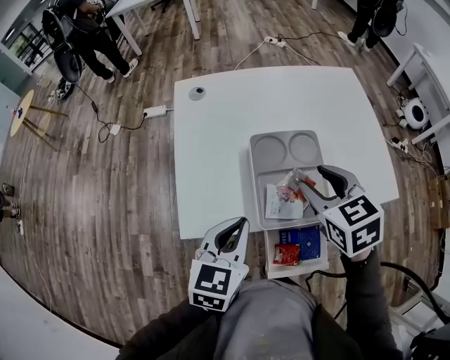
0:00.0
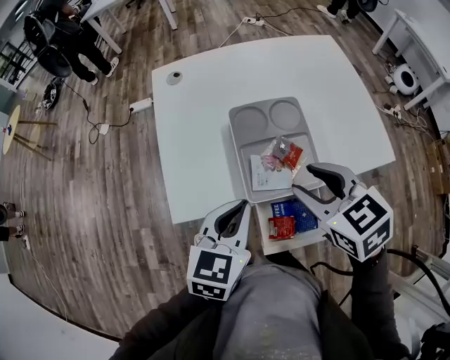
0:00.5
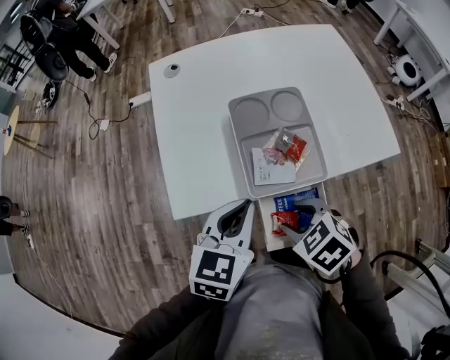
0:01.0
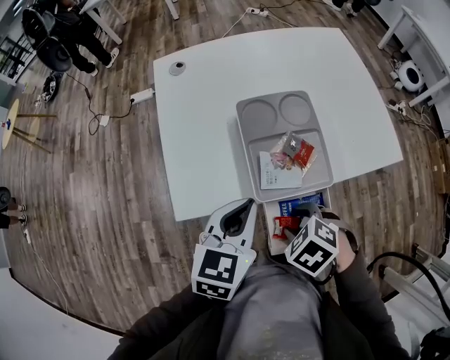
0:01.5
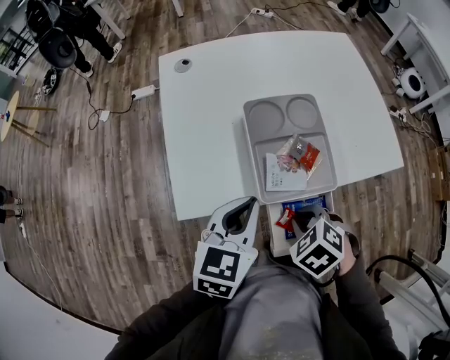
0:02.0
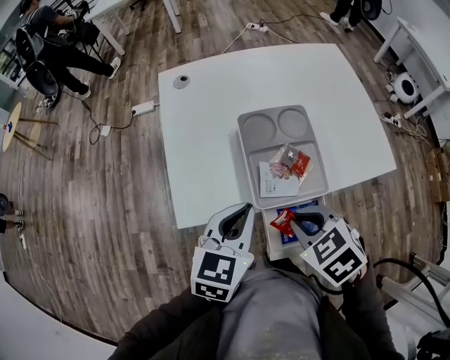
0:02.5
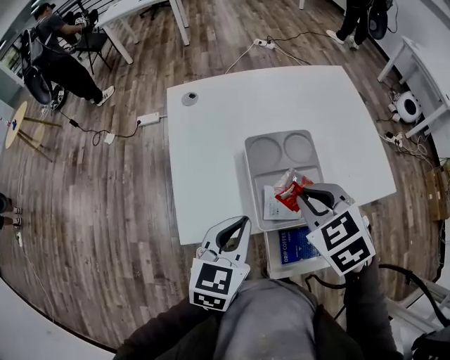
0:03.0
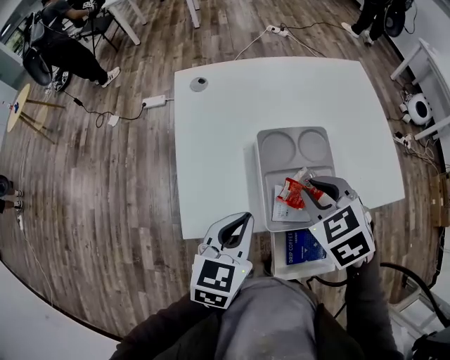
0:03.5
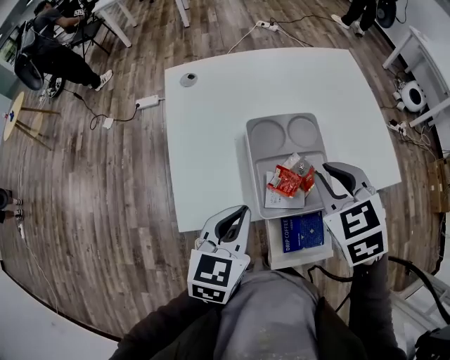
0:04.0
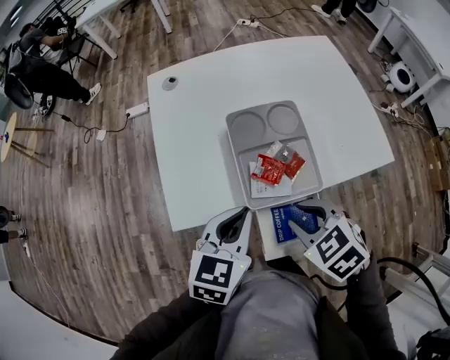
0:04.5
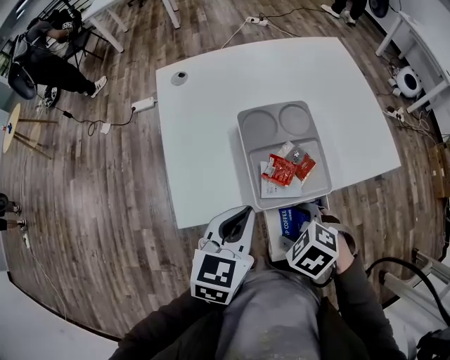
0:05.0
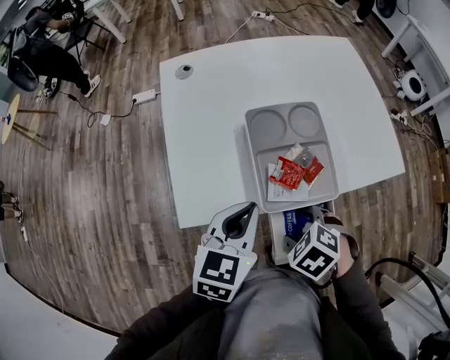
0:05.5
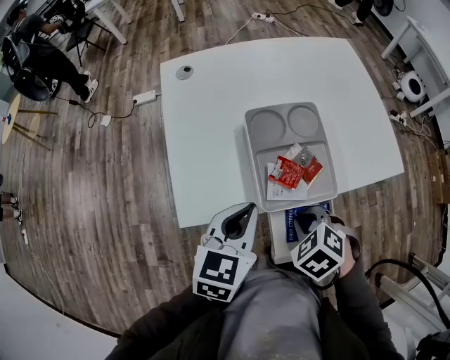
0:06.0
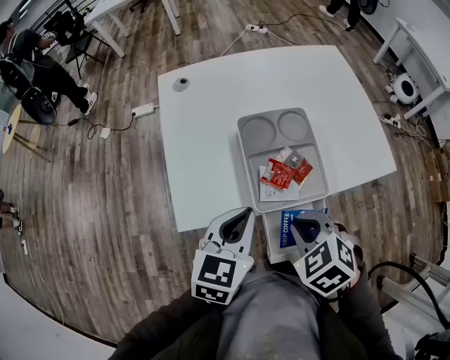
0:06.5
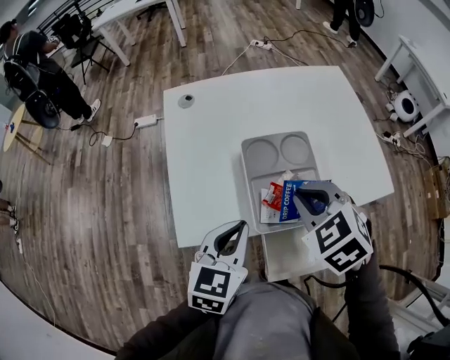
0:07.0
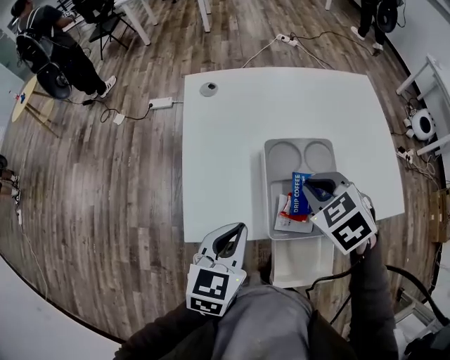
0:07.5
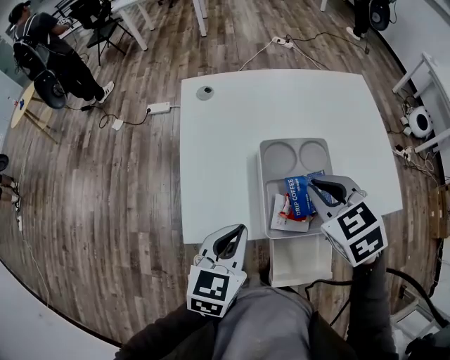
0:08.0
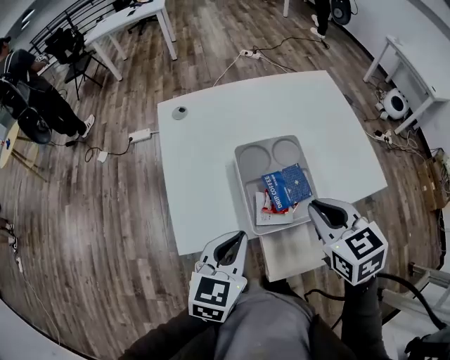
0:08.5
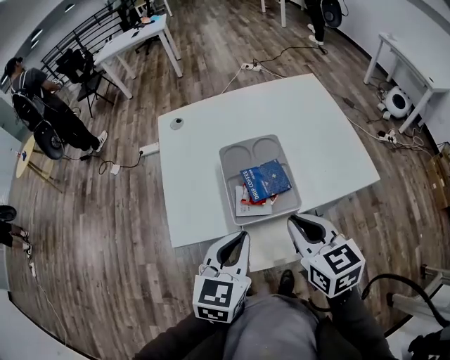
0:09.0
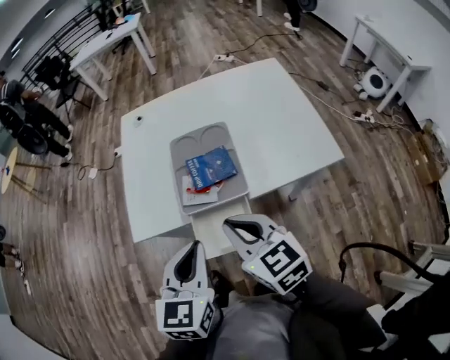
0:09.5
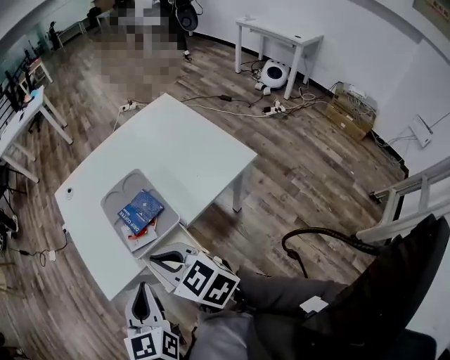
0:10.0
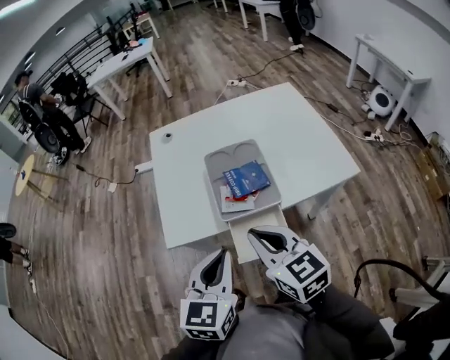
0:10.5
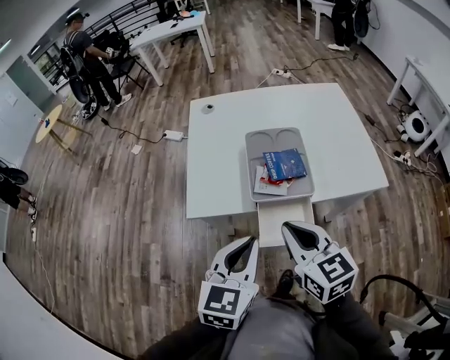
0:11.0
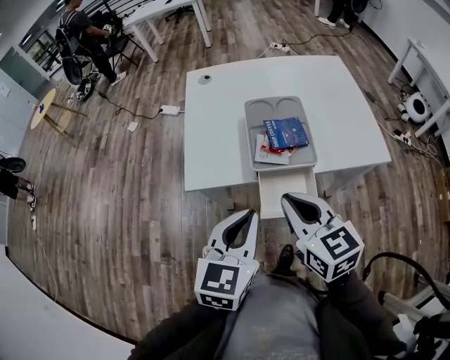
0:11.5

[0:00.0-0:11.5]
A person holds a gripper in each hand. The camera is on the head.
0:00.0 to 0:02.0: The right gripper moves approximately 20 cm, tilts its fingers roughly 30 degrees downward, and closes up.
0:02.0 to 0:04.0: The right gripper is displaced upward by some 15 cm, and swivels about 30 degrees.
0:04.0 to 0:06.0: The right gripper is displaced downward by roughly 15 cm, swivels about 30 degrees, and opens and closes again.
0:06.0 to 0:07.5: The right gripper travels forward and upward by about 20 cm.
0:07.5 to 0:09.5: The left gripper heads backward, to the right and upward, covering roughly 20 cm. Meanwhile the right gripper heads backward, covering roughly 20 cm, and angles its fingers upward, by about 40 degrees.
0:09.5 to 0:11.5: The right gripper shifts by about 5 cm. The left gripper shifts by roughly 5 cm.

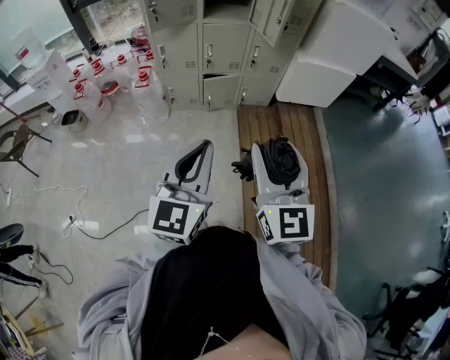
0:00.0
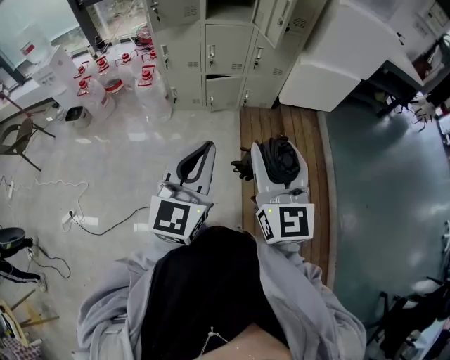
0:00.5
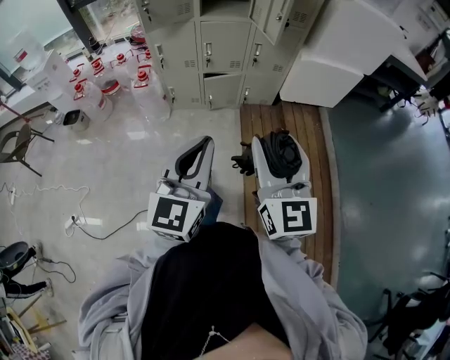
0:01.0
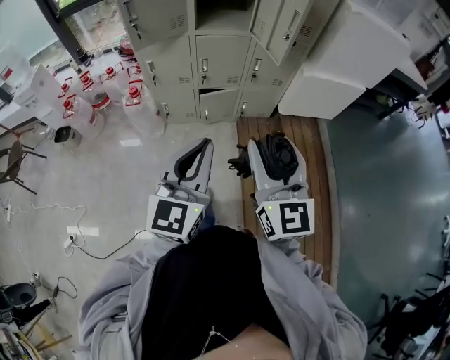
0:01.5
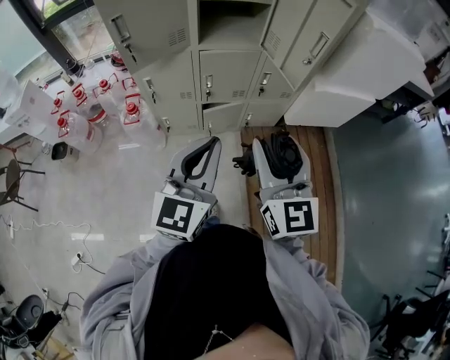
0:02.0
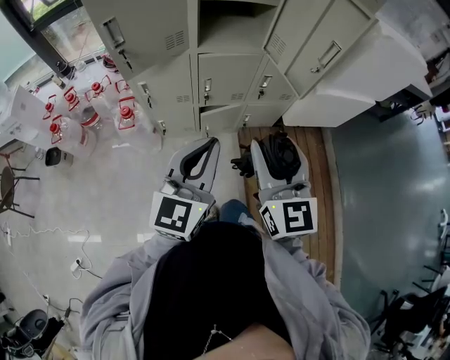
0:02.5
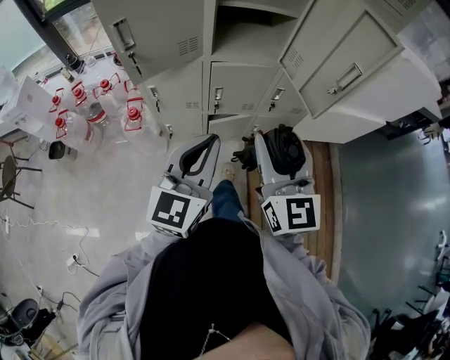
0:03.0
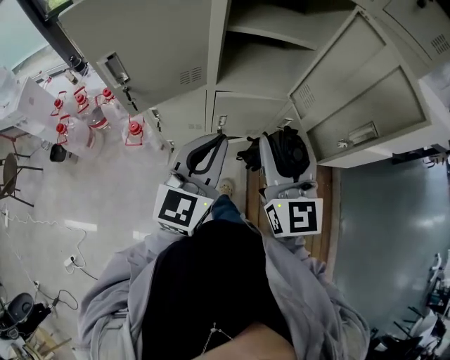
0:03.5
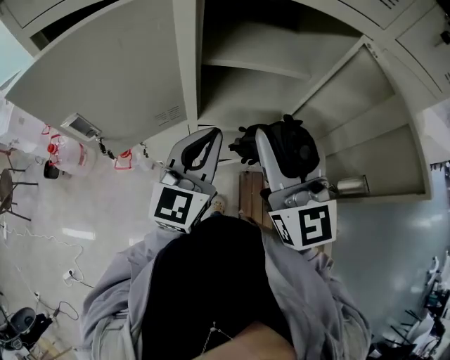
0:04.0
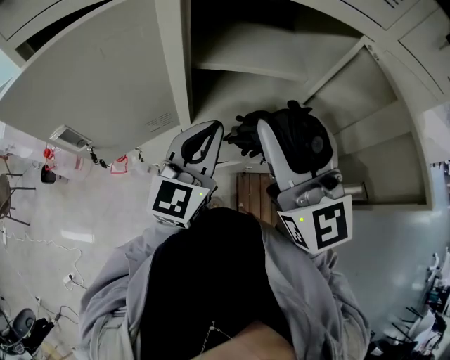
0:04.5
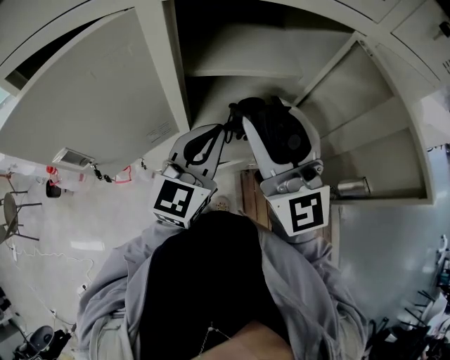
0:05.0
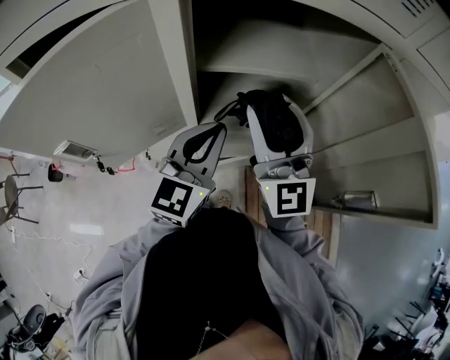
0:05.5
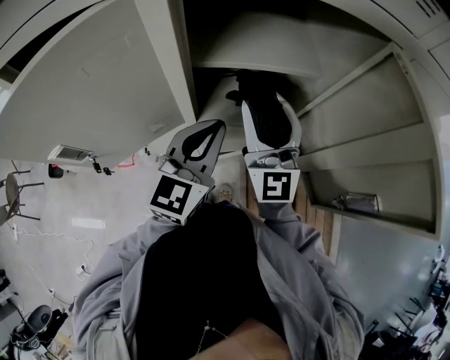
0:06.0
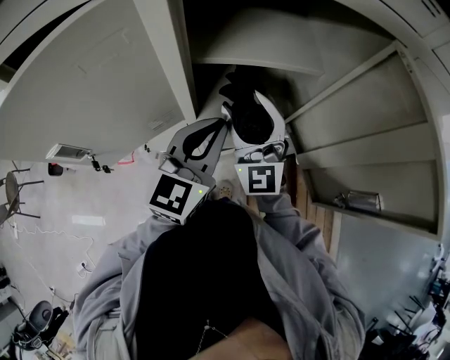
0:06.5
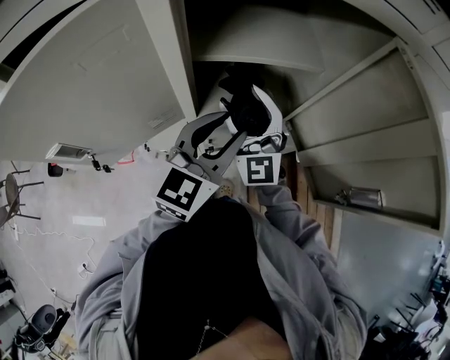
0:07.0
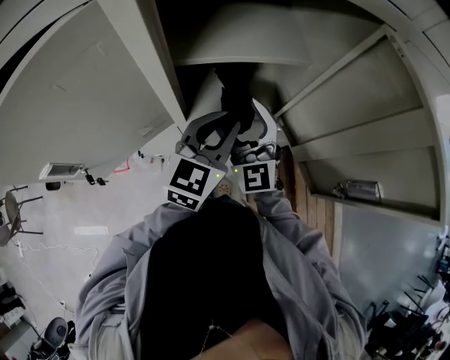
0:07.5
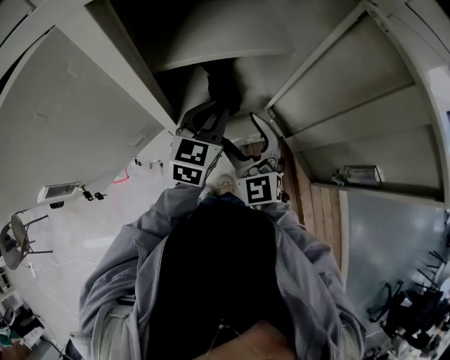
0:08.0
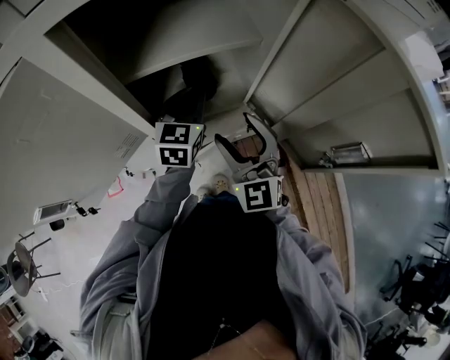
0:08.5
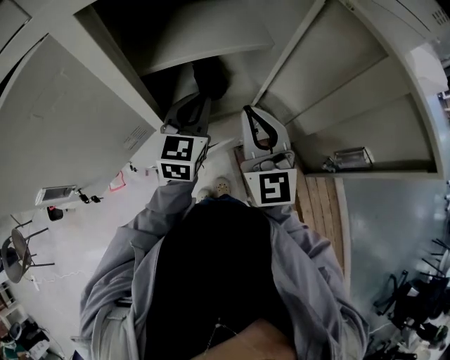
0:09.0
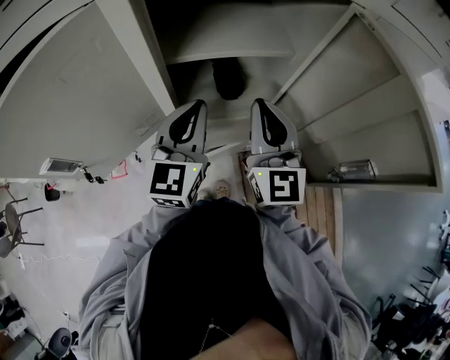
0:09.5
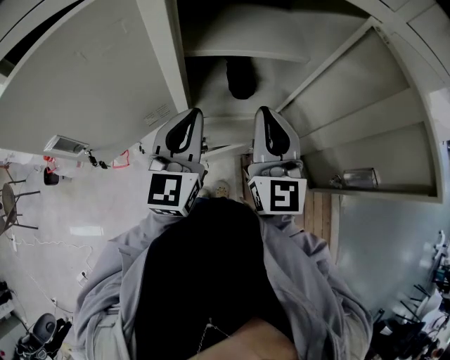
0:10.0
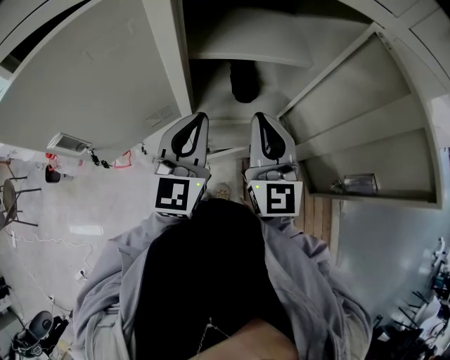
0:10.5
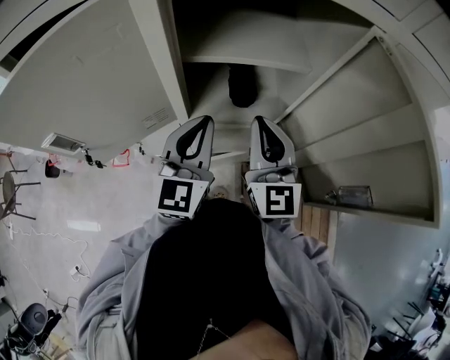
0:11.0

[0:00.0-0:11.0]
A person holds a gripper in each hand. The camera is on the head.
0:00.0 to 0:02.0: Both grippers move forward, roughly 35 cm.
0:02.0 to 0:03.5: The grippers both shift forward by roughly 25 cm.
0:03.5 to 0:05.5: Both grippers travel together forward, roughly 20 cm. The right gripper turns by approximately 20 degrees.
0:05.5 to 0:07.5: The right gripper goes approximately 15 cm downward, swivels approximately 30 degrees, and opens, while the left gripper is displaced downward by approximately 5 cm, and opens and closes again.
0:07.5 to 0:09.0: The right gripper goes approximately 10 cm to the right and upward, and closes up. The left gripper is displaced forward by approximately 5 cm.
0:09.0 to 0:11.0: The left gripper goes approximately 10 cm backward and upward.

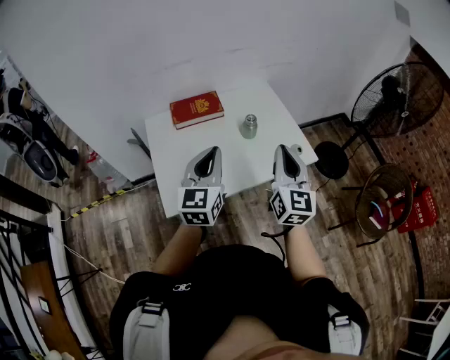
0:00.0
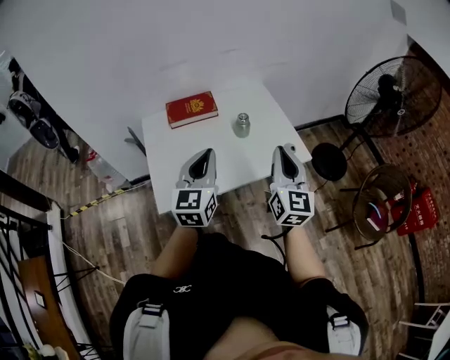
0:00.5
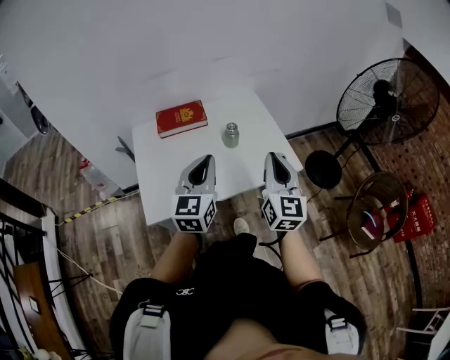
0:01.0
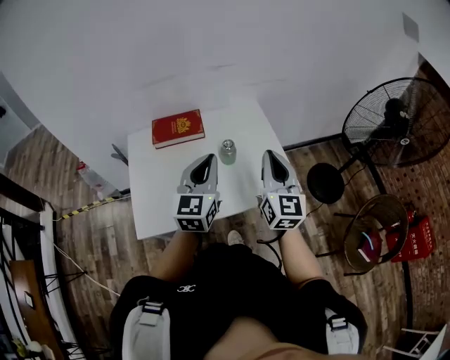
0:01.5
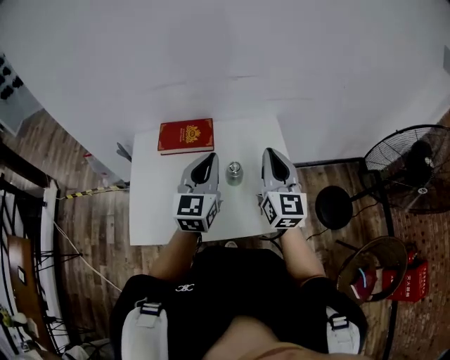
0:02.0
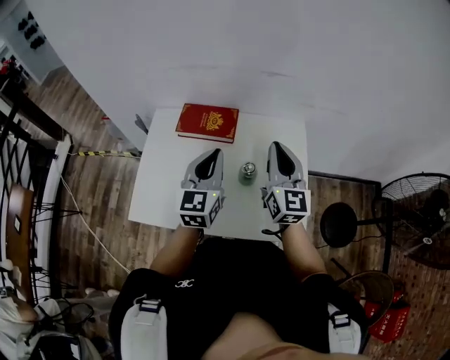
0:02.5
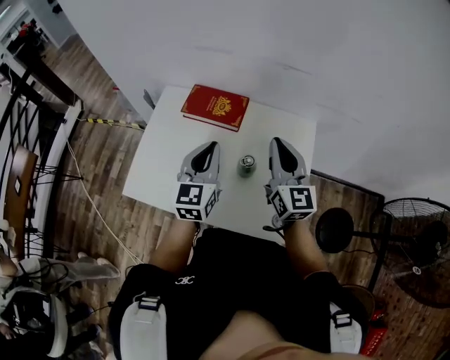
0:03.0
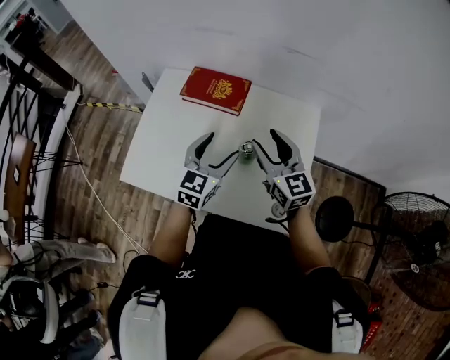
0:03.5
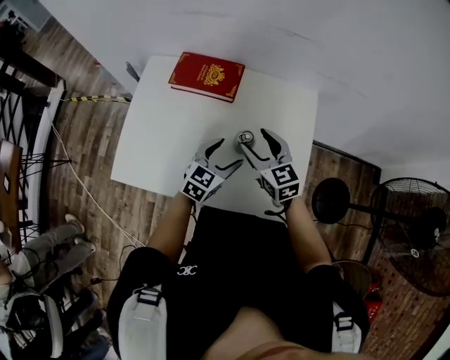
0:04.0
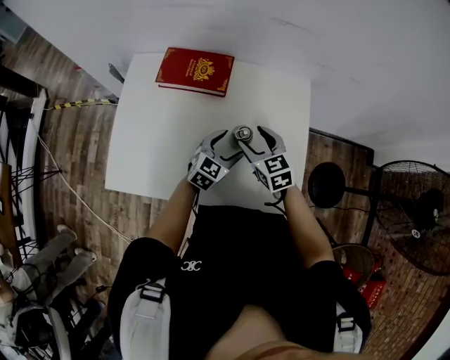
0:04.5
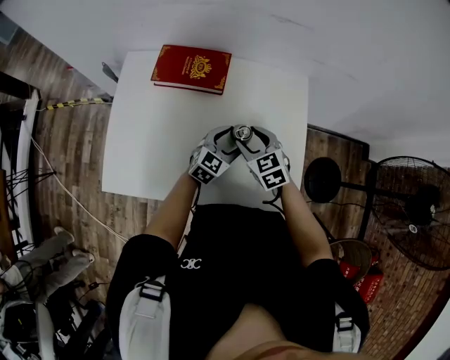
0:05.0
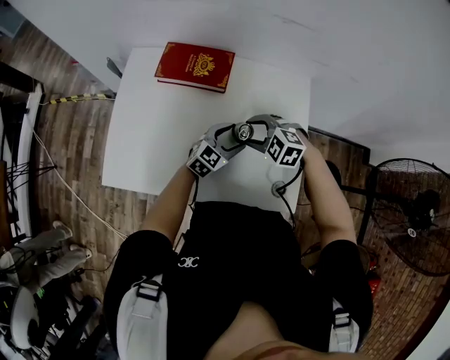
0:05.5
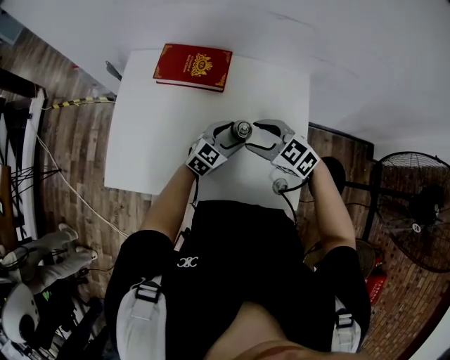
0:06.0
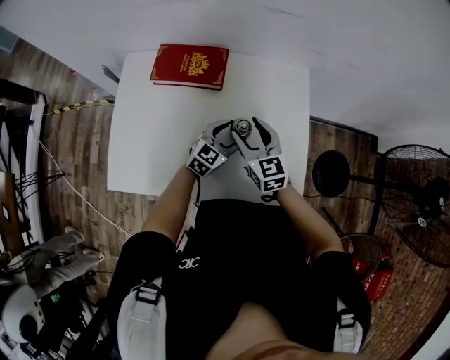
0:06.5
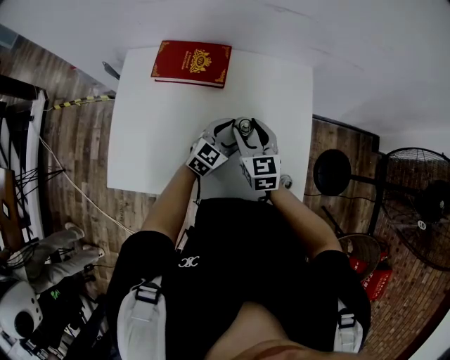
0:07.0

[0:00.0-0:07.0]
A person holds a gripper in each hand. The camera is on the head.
0:00.0 to 0:02.0: The right gripper shifts about 25 cm forward. Meanwhile the left gripper shifts roughly 25 cm forward and to the right.
0:02.0 to 0:03.5: The right gripper shifts about 10 cm downward, forward and to the left, rotates approximately 40 degrees, and opens up. The left gripper goes approximately 10 cm downward, and opens.
0:03.5 to 0:05.0: The left gripper travels downward and to the right by approximately 20 cm, and turns by some 30 degrees. Meanwhile the right gripper travels downward by some 20 cm, and tips its fingers downward by roughly 30 degrees.
0:05.0 to 0:07.0: The right gripper changes its angle by some 20 degrees.
